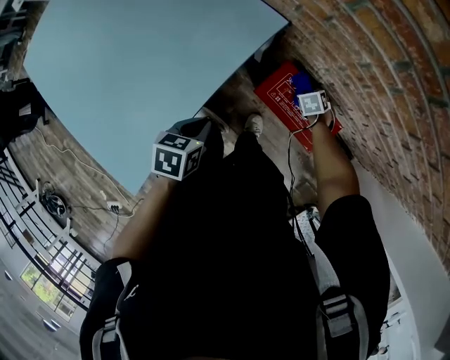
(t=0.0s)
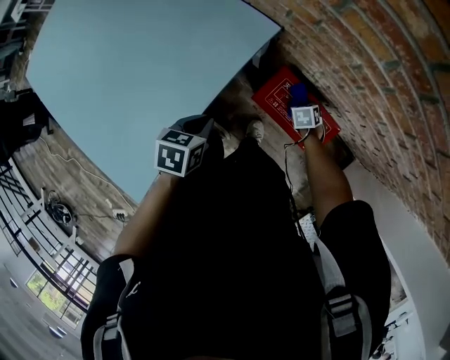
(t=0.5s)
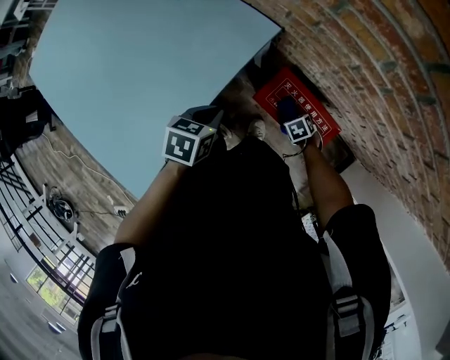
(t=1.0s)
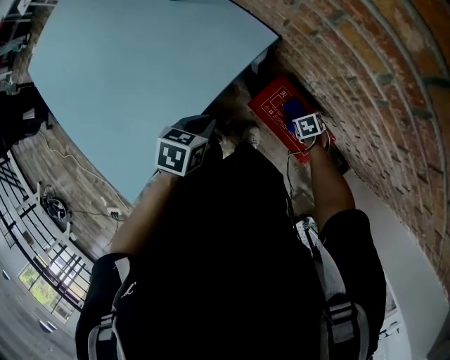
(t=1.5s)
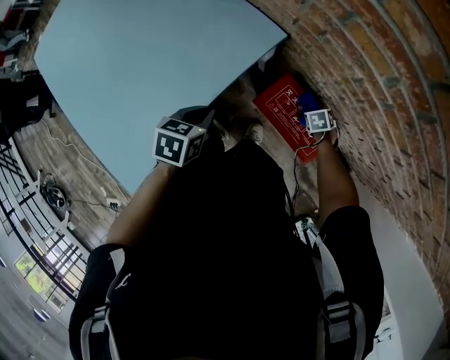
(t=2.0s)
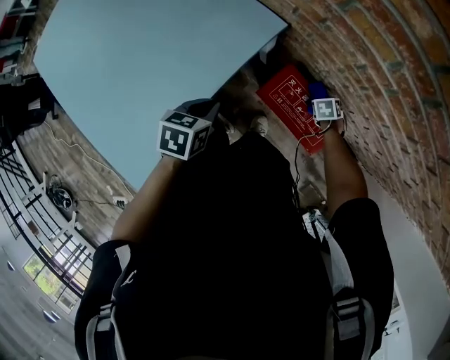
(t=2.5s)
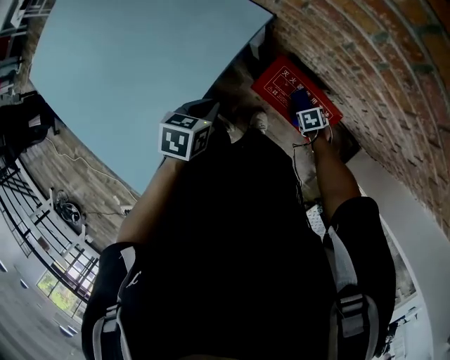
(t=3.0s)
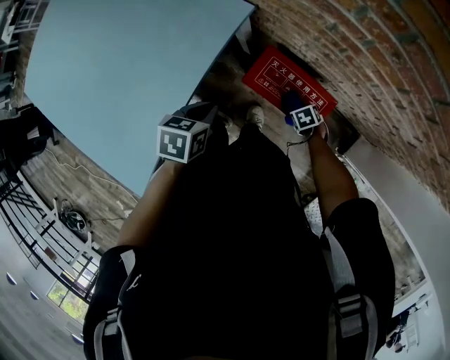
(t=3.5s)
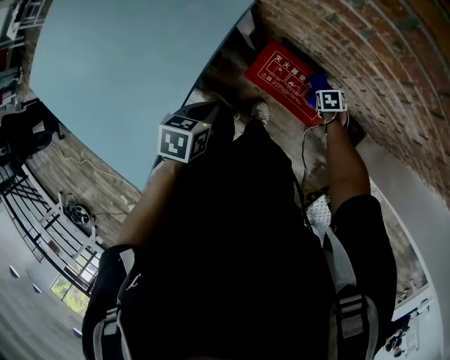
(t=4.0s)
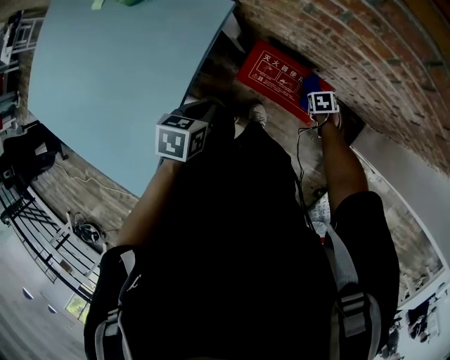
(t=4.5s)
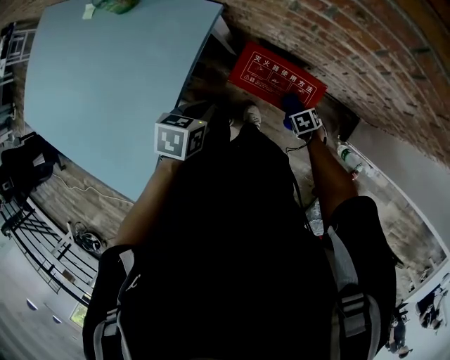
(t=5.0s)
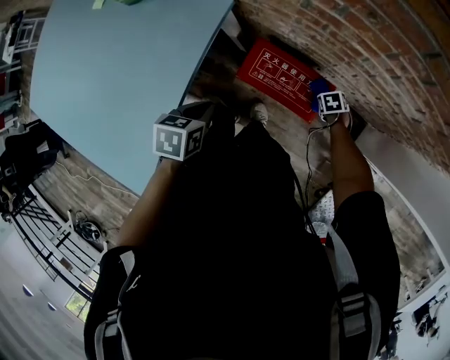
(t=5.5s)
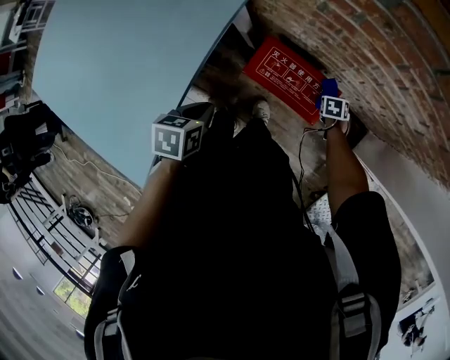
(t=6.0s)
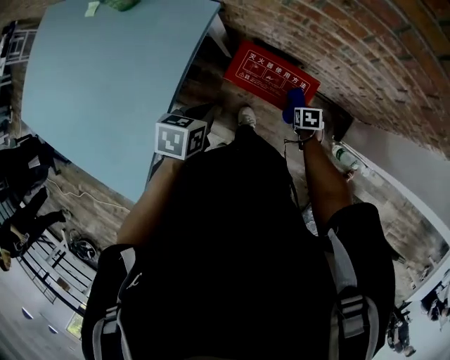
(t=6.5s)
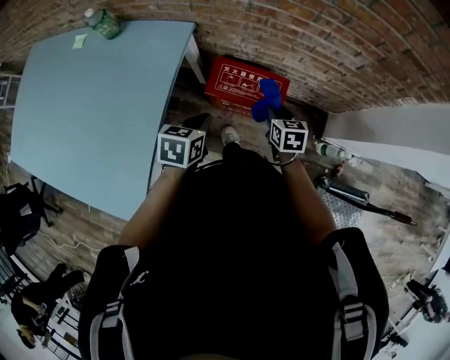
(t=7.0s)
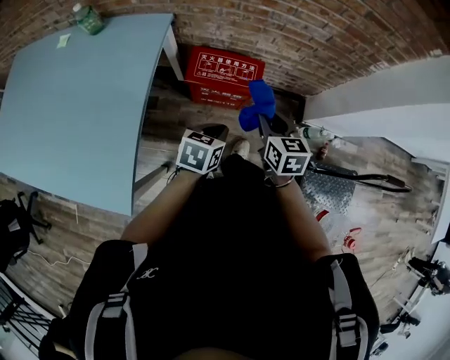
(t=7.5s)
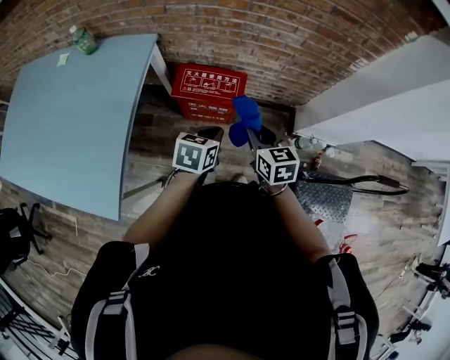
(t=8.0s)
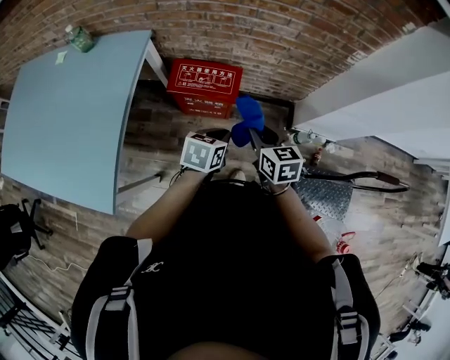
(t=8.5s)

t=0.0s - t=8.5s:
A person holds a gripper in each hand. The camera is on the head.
t=0.0s - t=2.0s: The left gripper moves about 5 cm.
t=2.0s - t=4.0s: The right gripper changes place by approximately 10 cm. Meanwhile the left gripper moves approximately 10 cm.
t=4.0s - t=6.5s: The right gripper shifts by some 10 cm.
t=6.5s - t=8.5s: The right gripper moves upward and backward, approximately 40 cm, and tilts its fingers about 40 degrees upward. Meanwhile the left gripper goes some 30 cm to the right and backward, and swivels approximately 20 degrees.

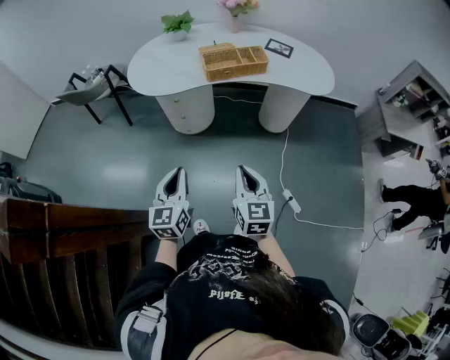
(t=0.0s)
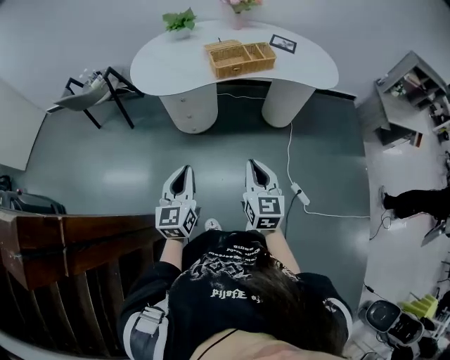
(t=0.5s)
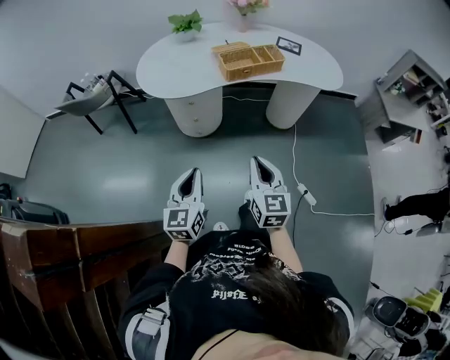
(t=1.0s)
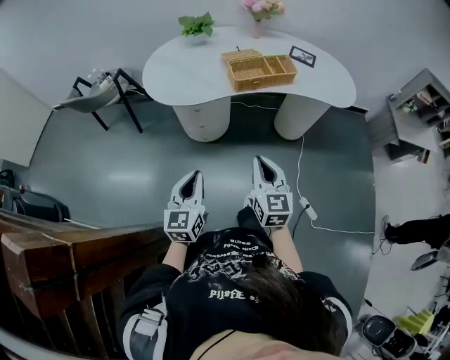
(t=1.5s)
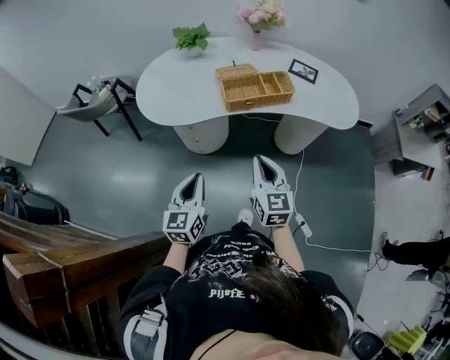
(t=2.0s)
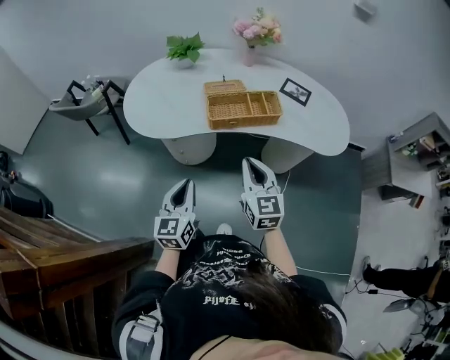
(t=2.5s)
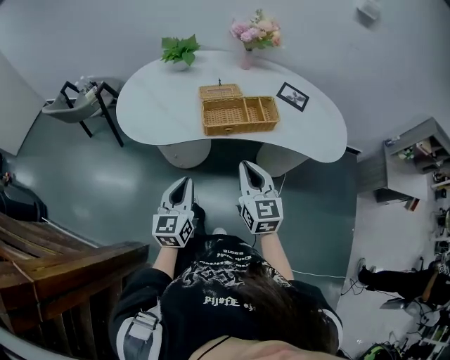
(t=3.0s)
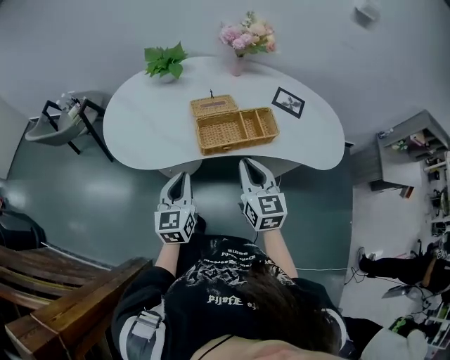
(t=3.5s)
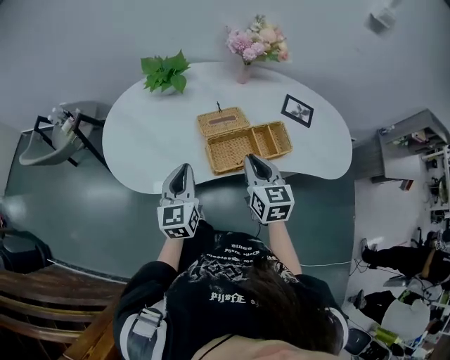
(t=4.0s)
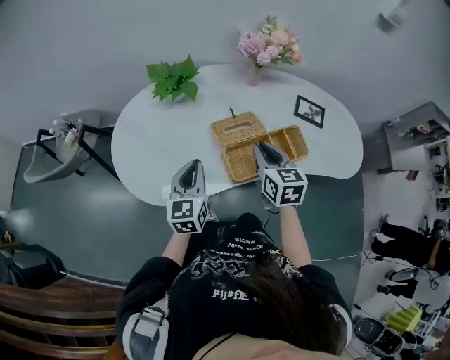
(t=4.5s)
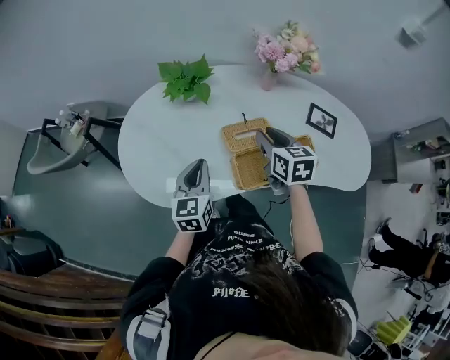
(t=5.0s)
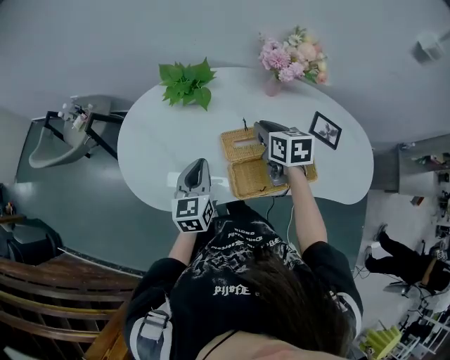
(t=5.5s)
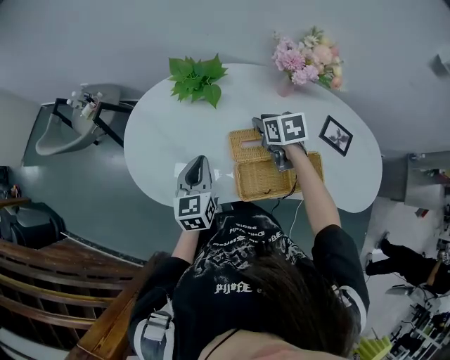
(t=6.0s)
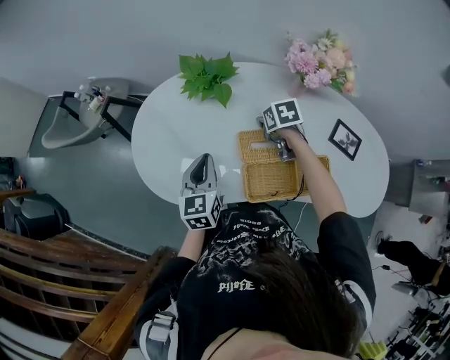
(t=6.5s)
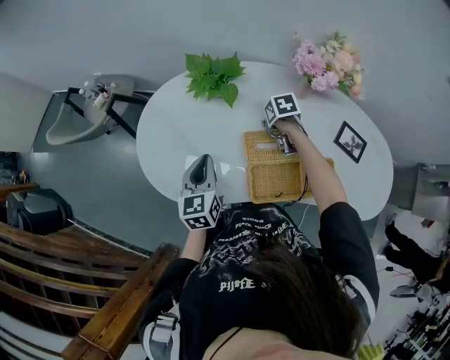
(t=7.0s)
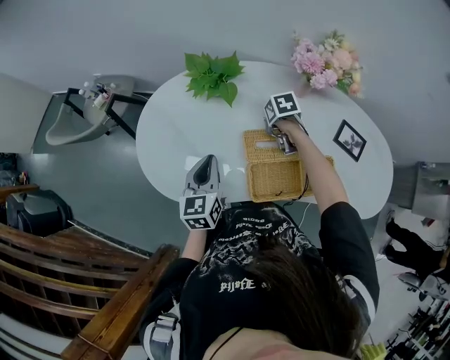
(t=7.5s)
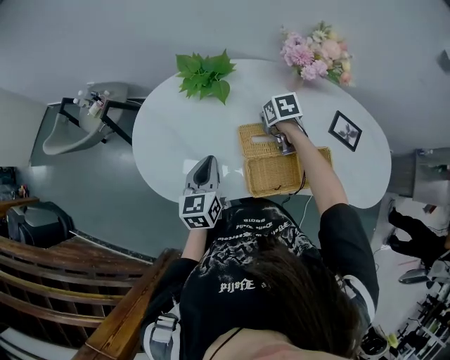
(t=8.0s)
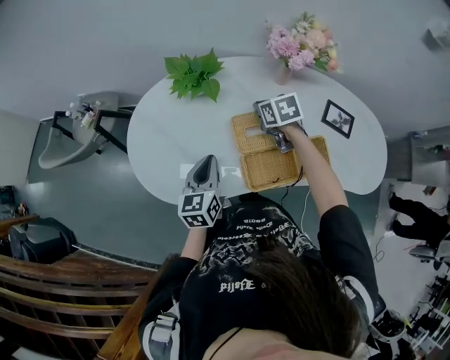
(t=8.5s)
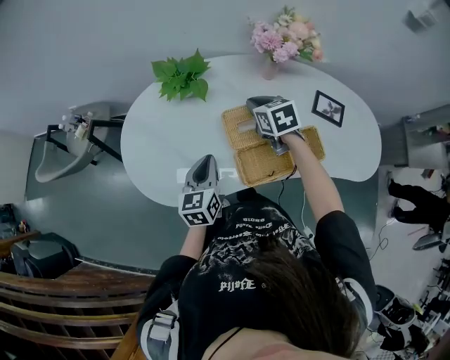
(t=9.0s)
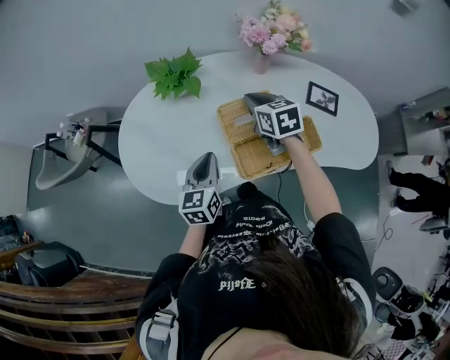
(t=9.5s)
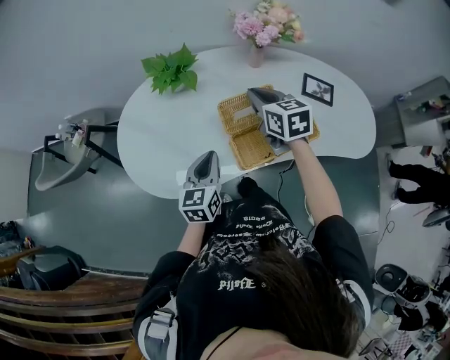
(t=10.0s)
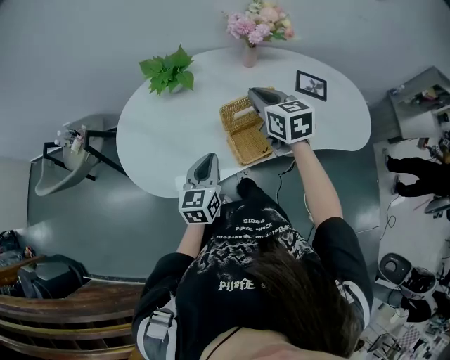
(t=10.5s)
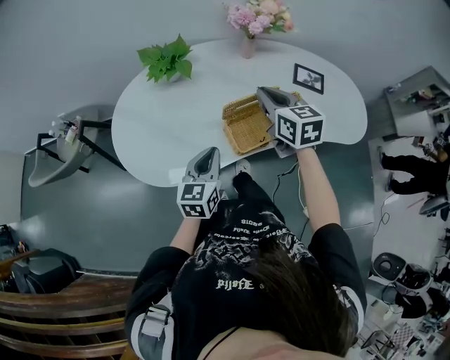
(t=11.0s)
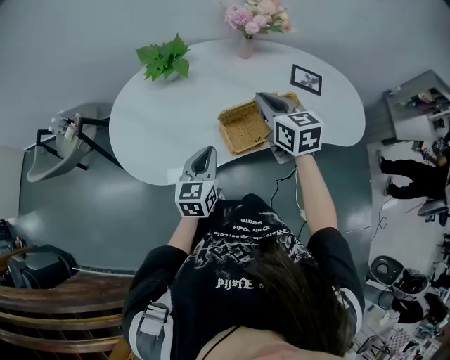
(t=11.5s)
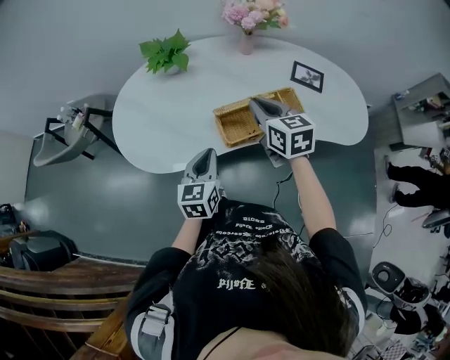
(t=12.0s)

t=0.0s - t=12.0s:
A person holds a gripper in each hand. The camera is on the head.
t=0.0s - t=2.0s: Both grippers move forward, some 20 cm.
t=2.0s - t=4.0s: Both grippers move forward, roughly 35 cm.
t=4.0s - t=6.0s: The right gripper heads forward, covering approximately 25 cm, and turns by roughly 30 degrees. The left gripper goes some 15 cm forward.
t=6.0s - t=8.0s: The right gripper shifts about 5 cm downward, and closes up.
t=8.0s - t=10.0s: The right gripper shifts some 20 cm upward and backward, and tilts its fingers about 30 degrees upward. The left gripper heads backward, covering some 5 cm.
t=10.0s - t=12.0s: The two grippers go approximately 10 cm backward.

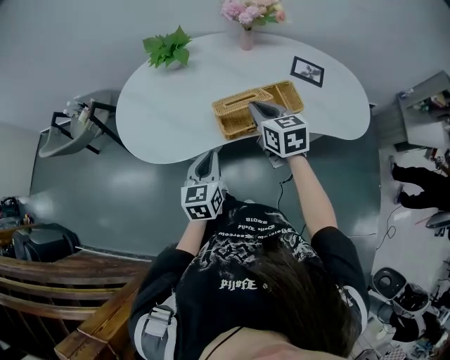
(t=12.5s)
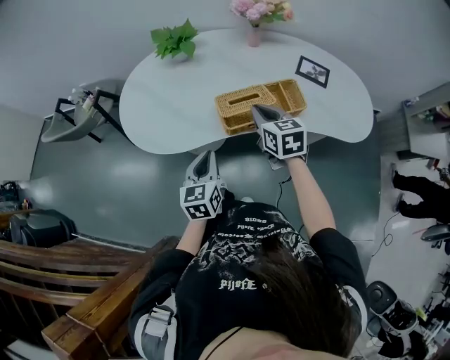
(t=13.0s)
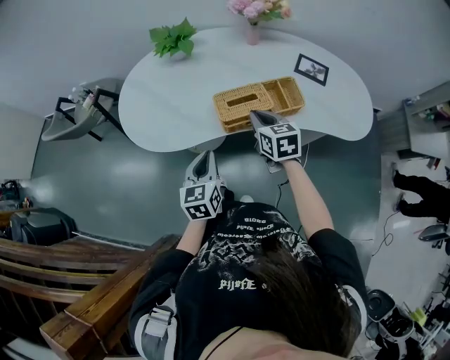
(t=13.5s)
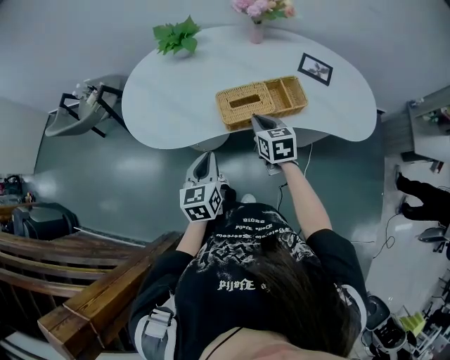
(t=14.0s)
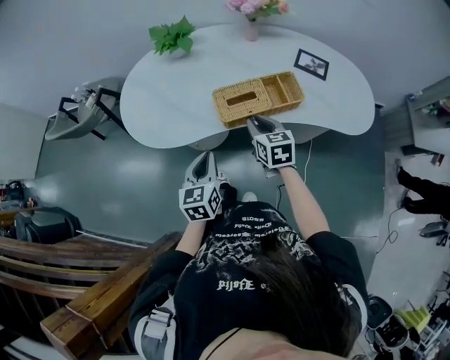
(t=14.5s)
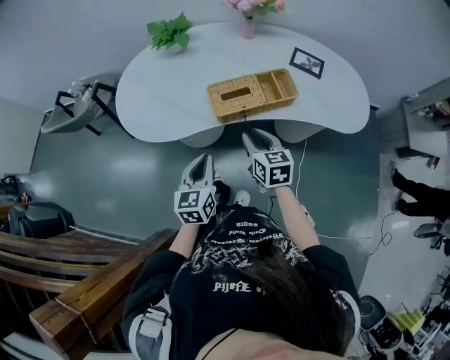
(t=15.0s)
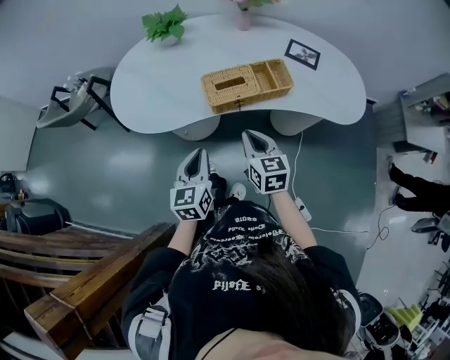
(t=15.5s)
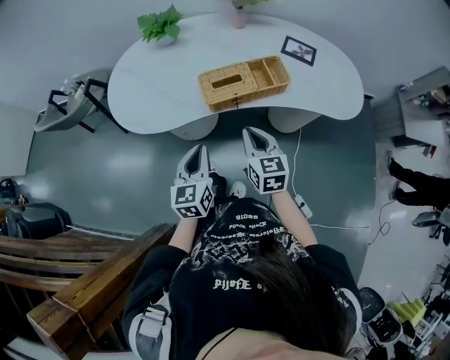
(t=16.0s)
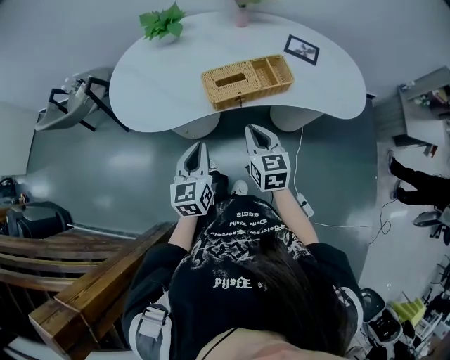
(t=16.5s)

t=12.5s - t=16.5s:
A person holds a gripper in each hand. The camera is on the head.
t=12.5s - t=14.5s: The left gripper ends up roughly 5 cm from where it was. Meanwhile the right gripper heads downward and backward, covering approximately 10 cm.
t=14.5s - t=16.5s: The right gripper travels backward by approximately 10 cm.

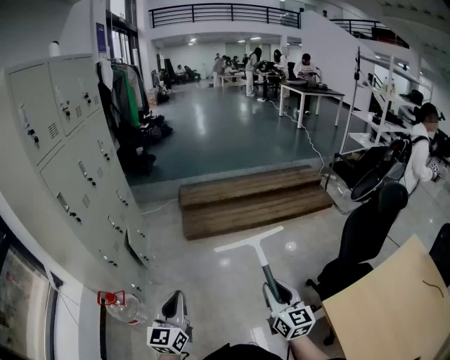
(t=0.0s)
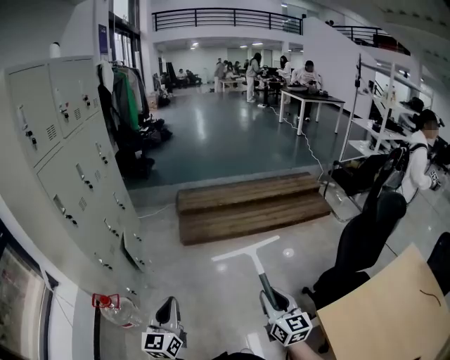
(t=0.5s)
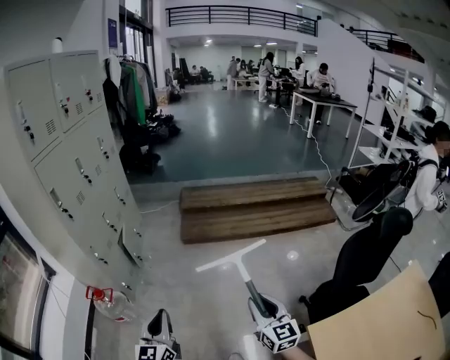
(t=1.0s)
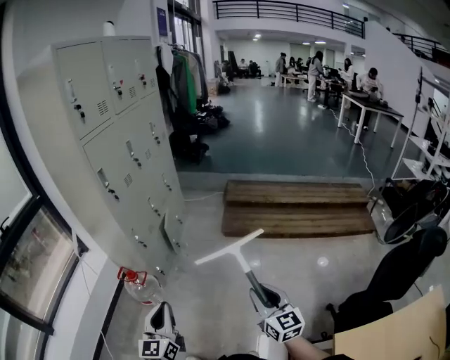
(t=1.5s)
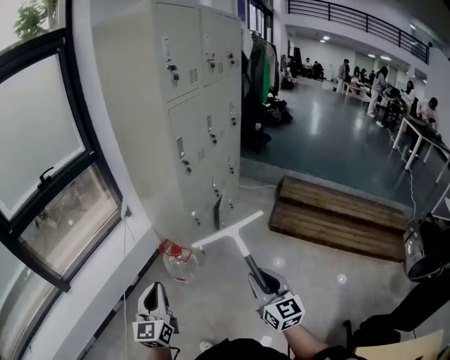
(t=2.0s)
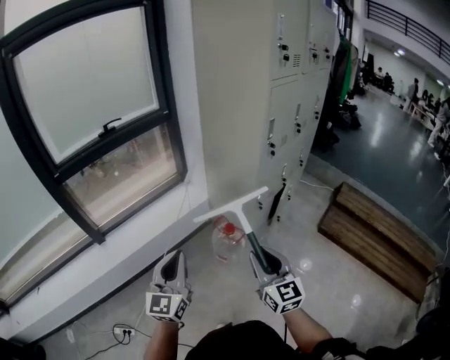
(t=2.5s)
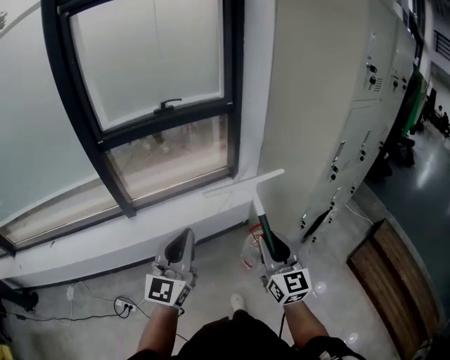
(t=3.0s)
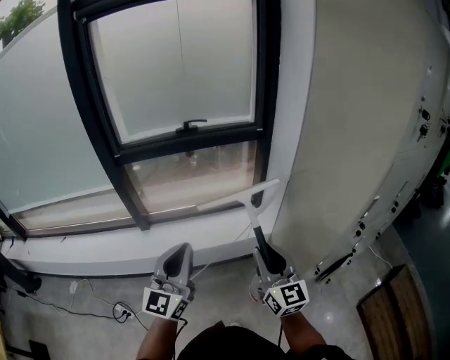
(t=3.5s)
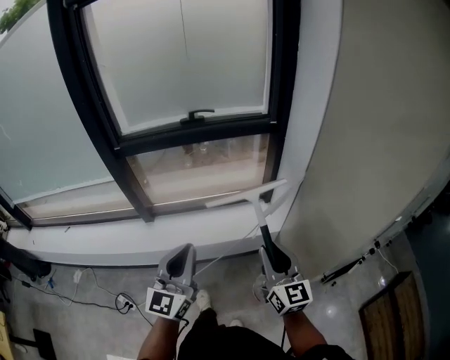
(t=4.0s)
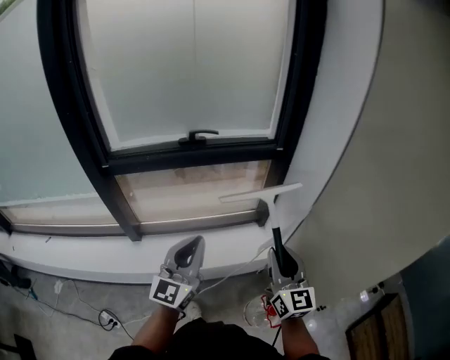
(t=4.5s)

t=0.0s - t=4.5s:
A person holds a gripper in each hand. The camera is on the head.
t=0.0s - t=2.0s: The right gripper moves roughly 35 cm, and turns by approximately 40 degrees. The left gripper shifts by roughly 35 cm, and changes its angle by approximately 50 degrees.
t=2.0s - t=4.5s: Both grippers are carried some 60 cm. The right gripper rotates some 40 degrees; the left gripper turns by roughly 30 degrees.
